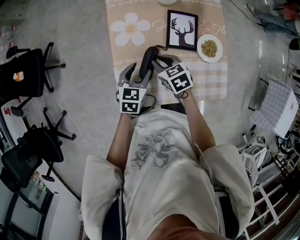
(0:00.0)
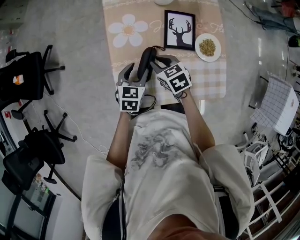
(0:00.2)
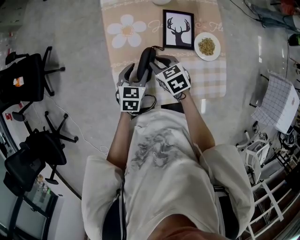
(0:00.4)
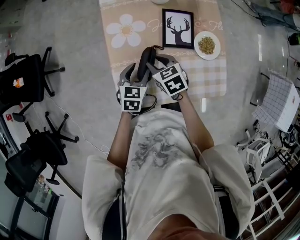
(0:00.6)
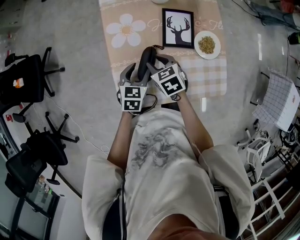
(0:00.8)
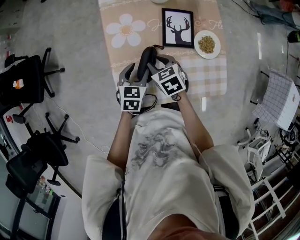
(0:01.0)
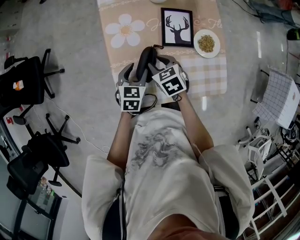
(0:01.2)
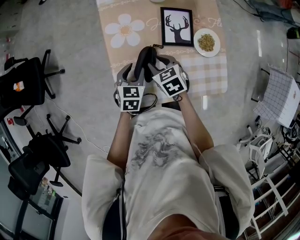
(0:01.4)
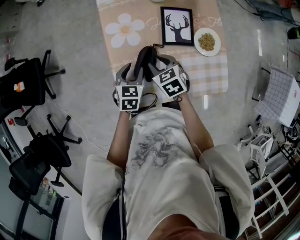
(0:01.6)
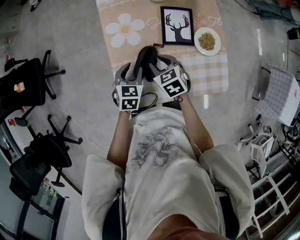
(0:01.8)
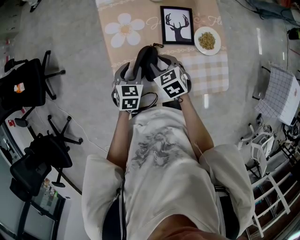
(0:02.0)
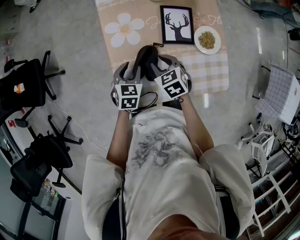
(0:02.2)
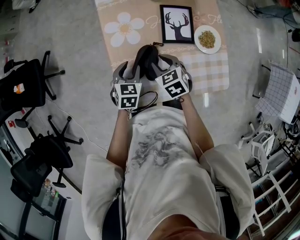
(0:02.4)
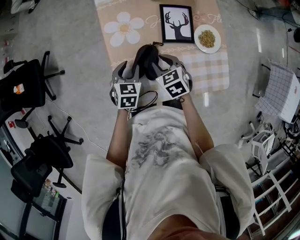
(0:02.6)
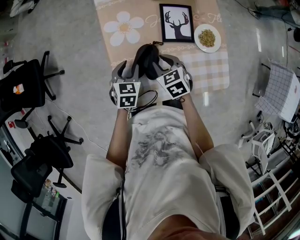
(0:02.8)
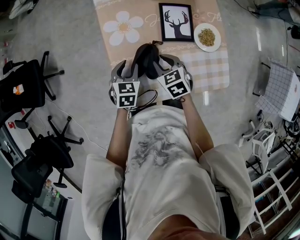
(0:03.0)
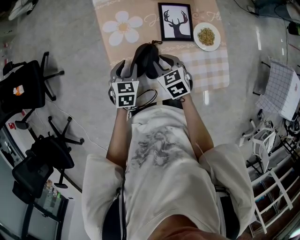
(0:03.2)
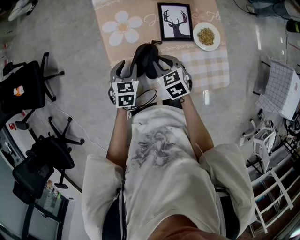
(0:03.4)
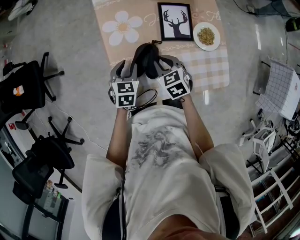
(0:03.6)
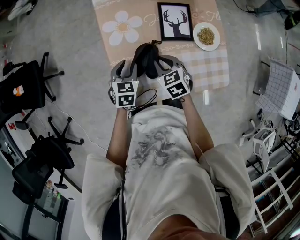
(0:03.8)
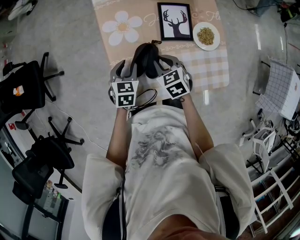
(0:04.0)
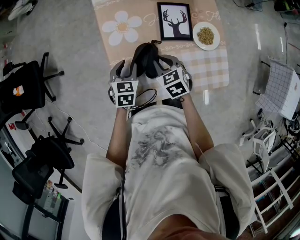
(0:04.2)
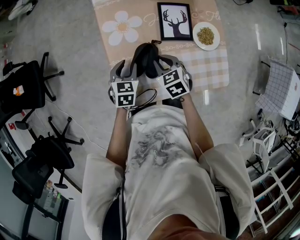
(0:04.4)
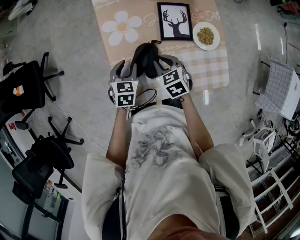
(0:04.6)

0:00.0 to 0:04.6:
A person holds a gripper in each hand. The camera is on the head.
0:00.0 to 0:03.0: The grippers make only small movements.
0:03.0 to 0:04.6: Neither gripper changes place.

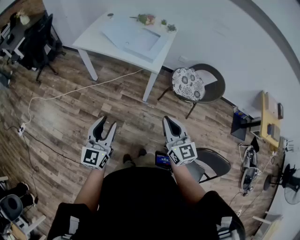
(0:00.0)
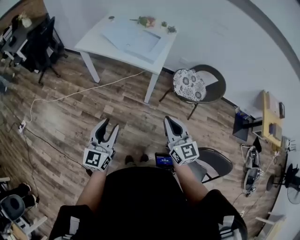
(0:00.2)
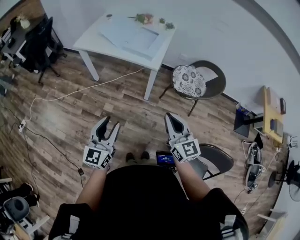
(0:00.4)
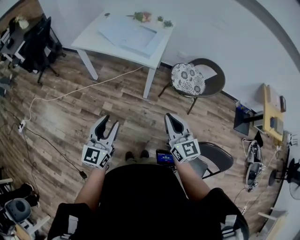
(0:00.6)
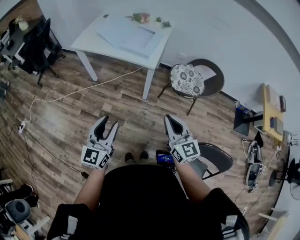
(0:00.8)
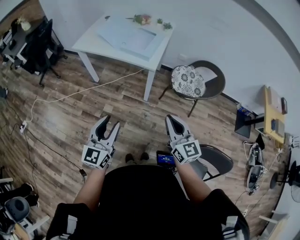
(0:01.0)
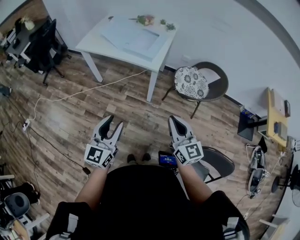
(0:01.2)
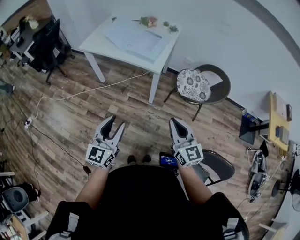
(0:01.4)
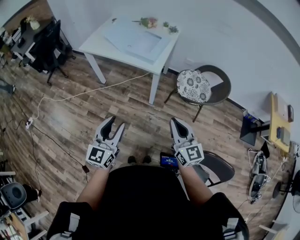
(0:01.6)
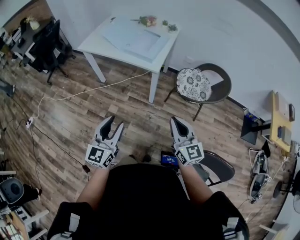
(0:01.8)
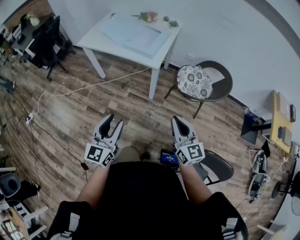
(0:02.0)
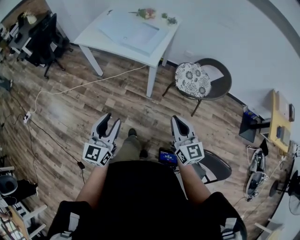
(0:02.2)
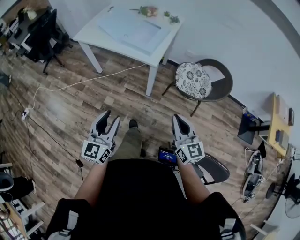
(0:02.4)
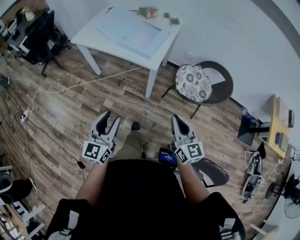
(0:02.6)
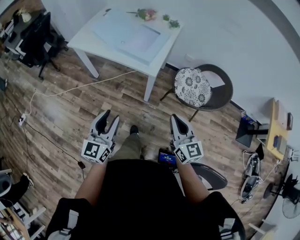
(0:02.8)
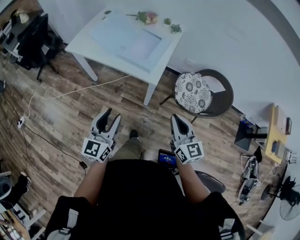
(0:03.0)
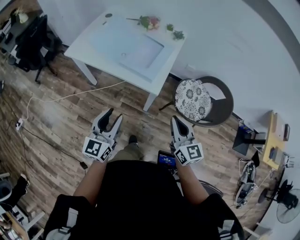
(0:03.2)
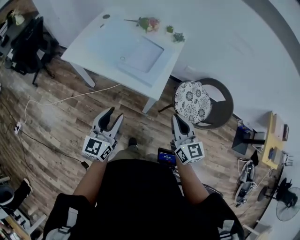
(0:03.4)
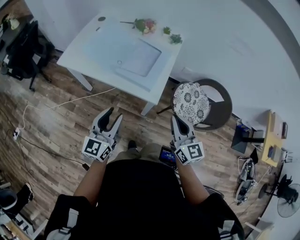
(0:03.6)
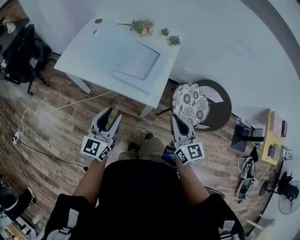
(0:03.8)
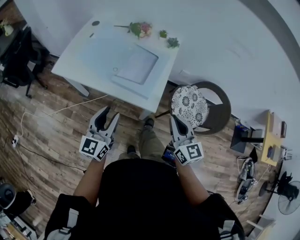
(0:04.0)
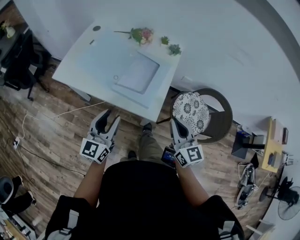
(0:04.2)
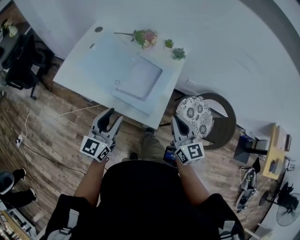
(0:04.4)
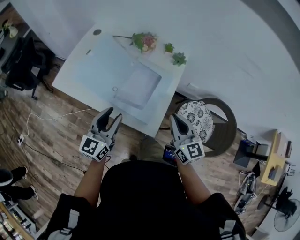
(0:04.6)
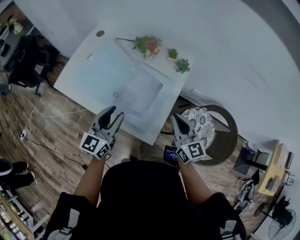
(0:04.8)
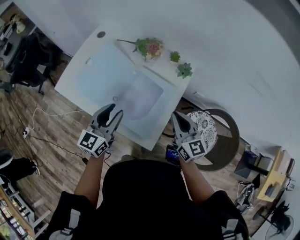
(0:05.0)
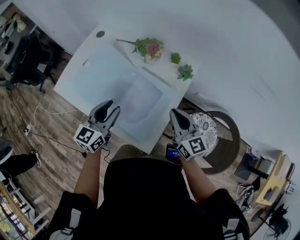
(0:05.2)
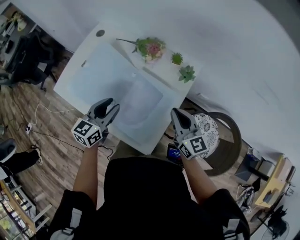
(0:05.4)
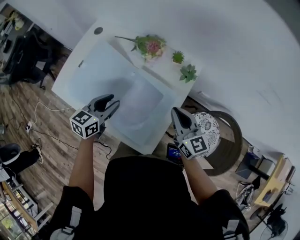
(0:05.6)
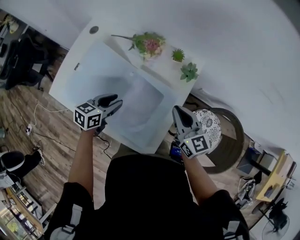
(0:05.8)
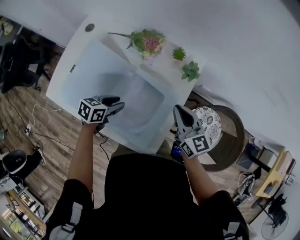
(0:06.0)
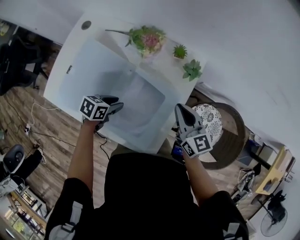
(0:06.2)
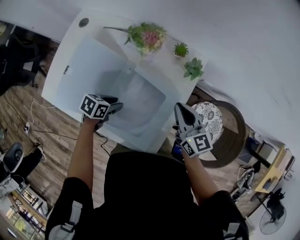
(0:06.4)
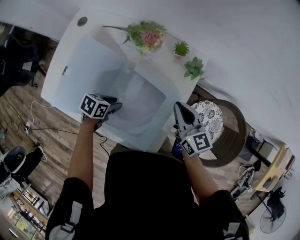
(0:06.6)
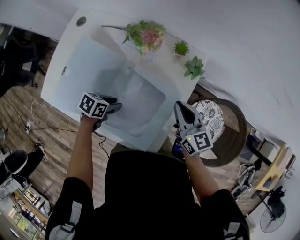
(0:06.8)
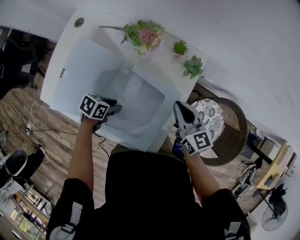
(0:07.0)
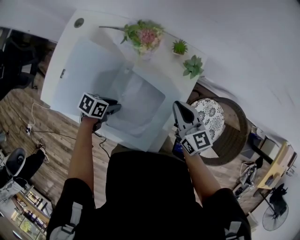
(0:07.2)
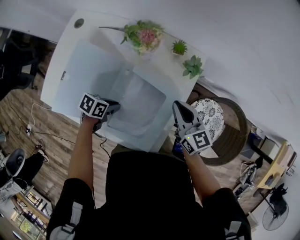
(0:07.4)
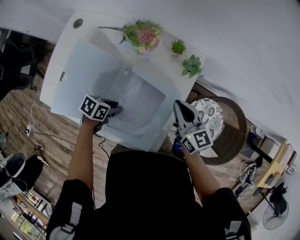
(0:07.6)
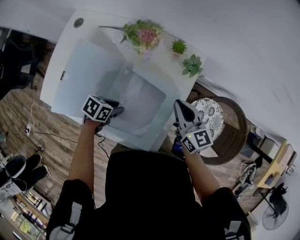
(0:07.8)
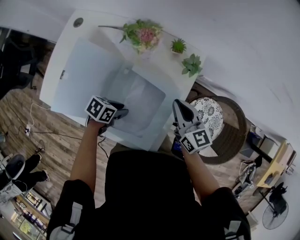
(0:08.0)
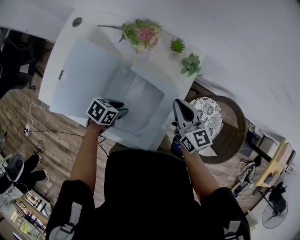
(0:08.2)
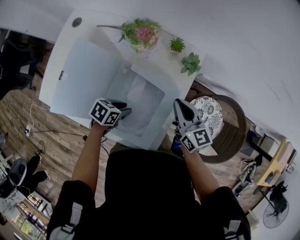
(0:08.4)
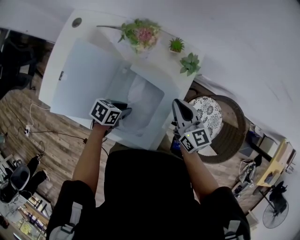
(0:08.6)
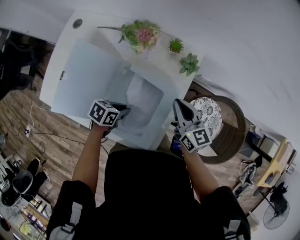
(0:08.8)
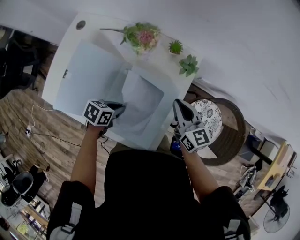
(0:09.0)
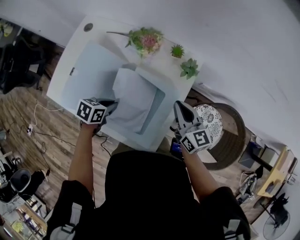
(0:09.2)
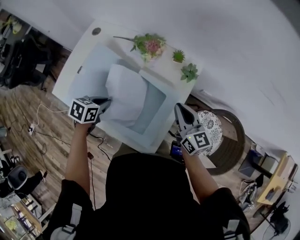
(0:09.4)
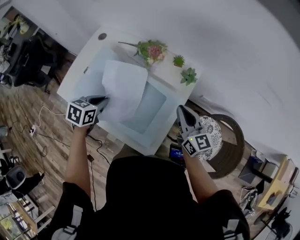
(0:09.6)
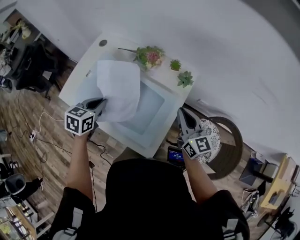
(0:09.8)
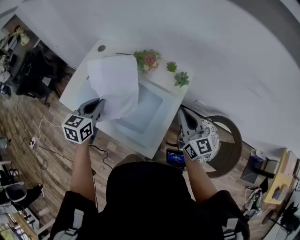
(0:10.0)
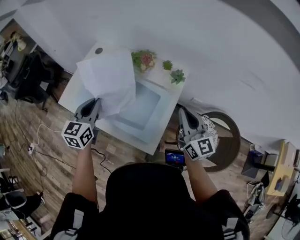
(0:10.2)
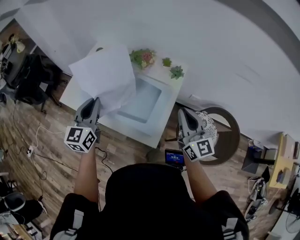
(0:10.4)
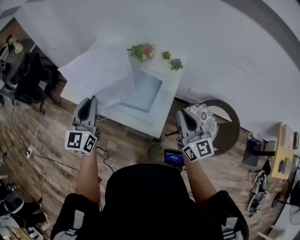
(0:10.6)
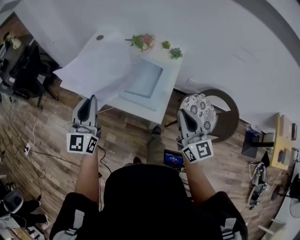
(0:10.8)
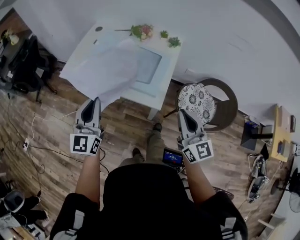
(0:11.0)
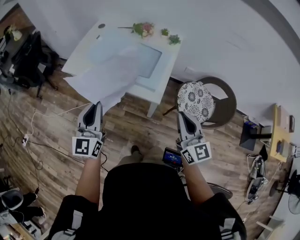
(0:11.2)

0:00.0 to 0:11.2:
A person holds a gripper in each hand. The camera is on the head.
0:00.0 to 0:01.6: Both grippers move to the right, some 10 cm.
0:01.6 to 0:03.2: Both grippers travel together forward, roughly 25 cm.
0:03.2 to 0:04.8: The grippers both shift forward by roughly 30 cm.
0:04.8 to 0:06.4: The left gripper travels downward by roughly 25 cm, and angles its fingers downward, by approximately 50 degrees. The right gripper ends up some 20 cm from where it was.
0:06.4 to 0:08.0: The left gripper shifts roughly 5 cm to the right.
0:08.0 to 0:09.6: The right gripper moves upward, roughly 5 cm, while the left gripper goes about 15 cm upward, swivels approximately 40 degrees, and closes its fingers.
0:09.6 to 0:11.2: The right gripper travels backward by roughly 40 cm; the left gripper moves backward and upward, approximately 40 cm, and angles its fingers upward, by roughly 60 degrees.

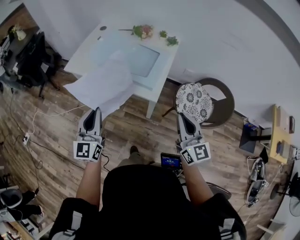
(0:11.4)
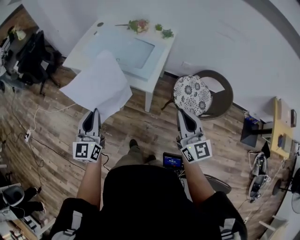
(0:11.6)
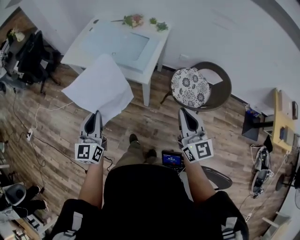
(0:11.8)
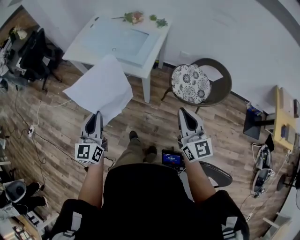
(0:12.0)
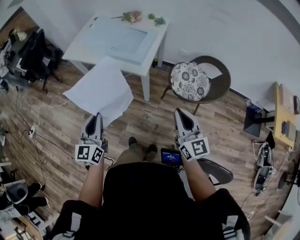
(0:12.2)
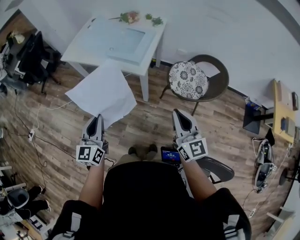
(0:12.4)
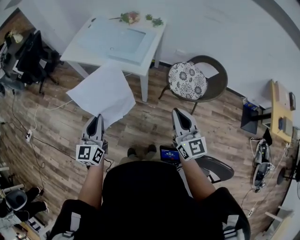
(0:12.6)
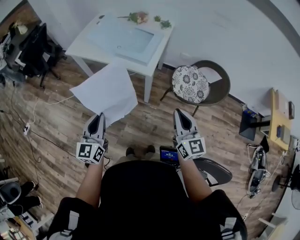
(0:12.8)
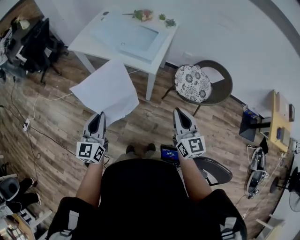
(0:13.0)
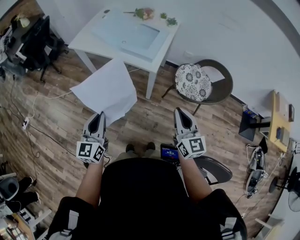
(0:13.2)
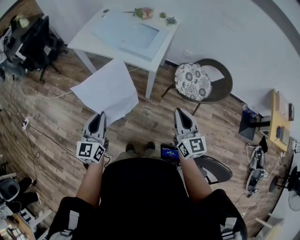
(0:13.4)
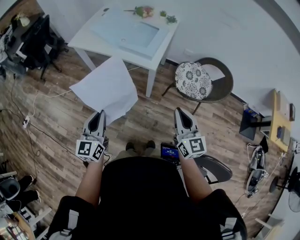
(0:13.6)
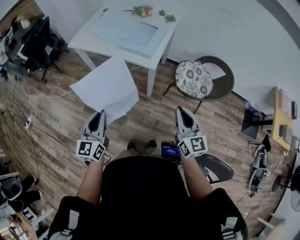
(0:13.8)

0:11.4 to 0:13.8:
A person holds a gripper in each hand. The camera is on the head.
0:11.4 to 0:12.6: Both grippers travel together backward, some 15 cm.
0:12.6 to 0:13.8: There are only small adjustments of the grippers.

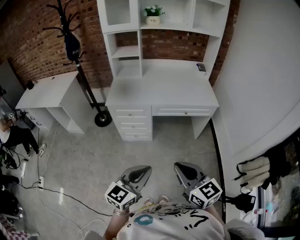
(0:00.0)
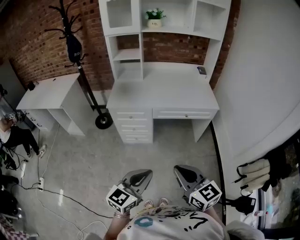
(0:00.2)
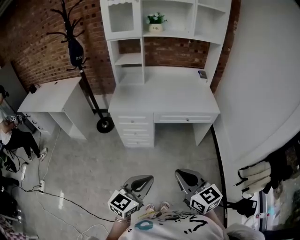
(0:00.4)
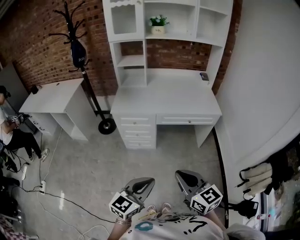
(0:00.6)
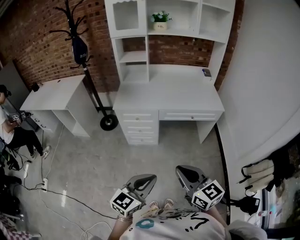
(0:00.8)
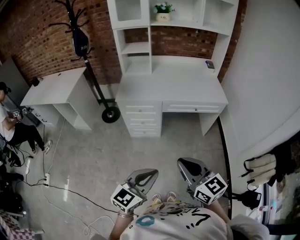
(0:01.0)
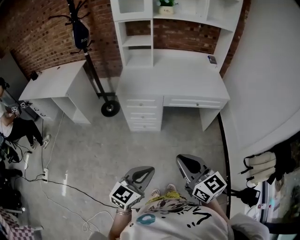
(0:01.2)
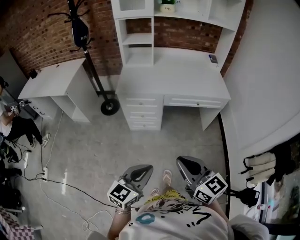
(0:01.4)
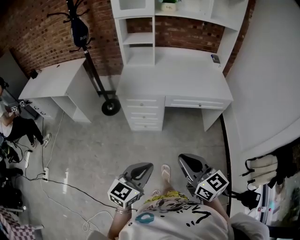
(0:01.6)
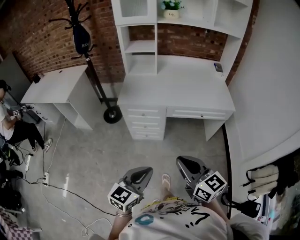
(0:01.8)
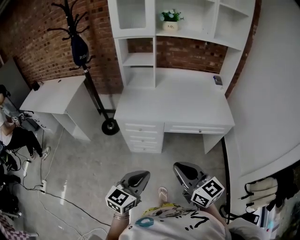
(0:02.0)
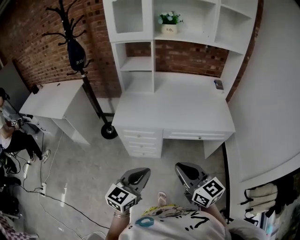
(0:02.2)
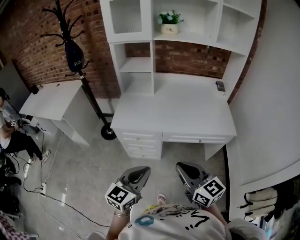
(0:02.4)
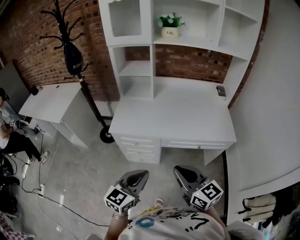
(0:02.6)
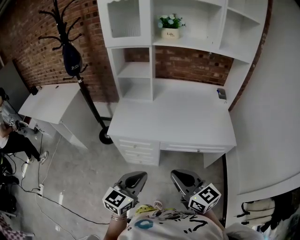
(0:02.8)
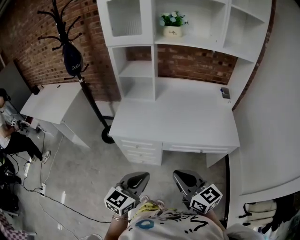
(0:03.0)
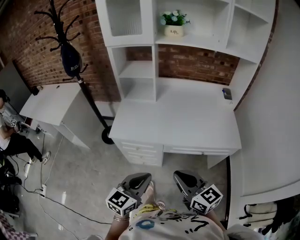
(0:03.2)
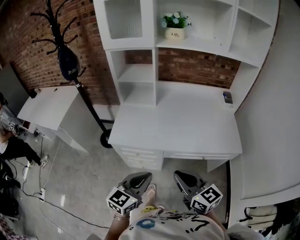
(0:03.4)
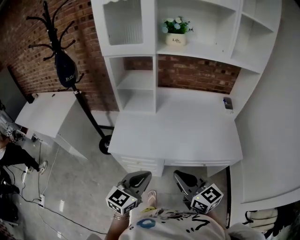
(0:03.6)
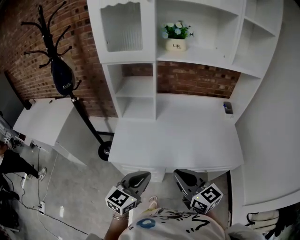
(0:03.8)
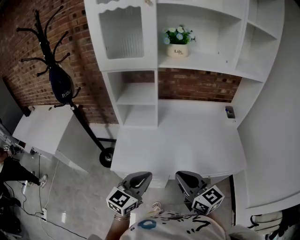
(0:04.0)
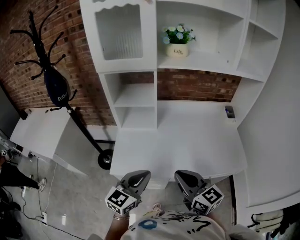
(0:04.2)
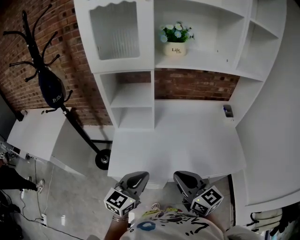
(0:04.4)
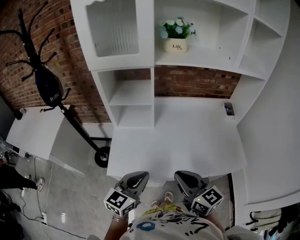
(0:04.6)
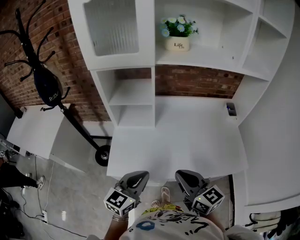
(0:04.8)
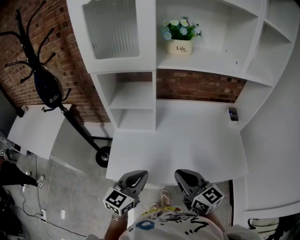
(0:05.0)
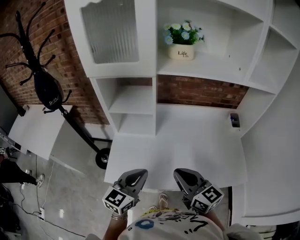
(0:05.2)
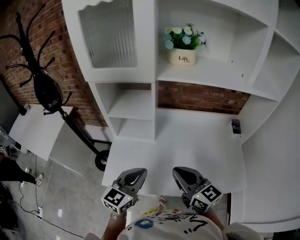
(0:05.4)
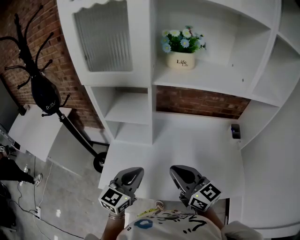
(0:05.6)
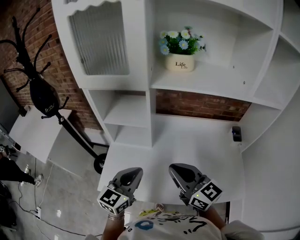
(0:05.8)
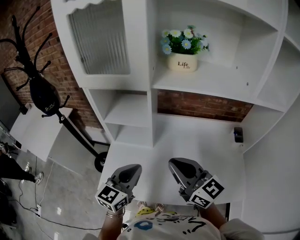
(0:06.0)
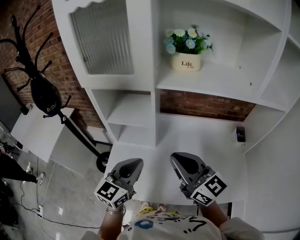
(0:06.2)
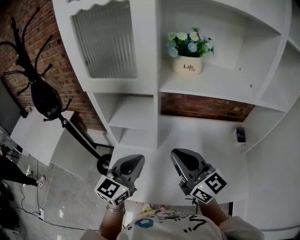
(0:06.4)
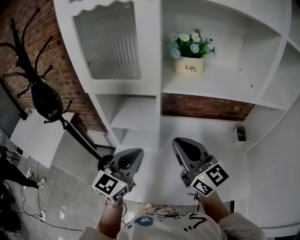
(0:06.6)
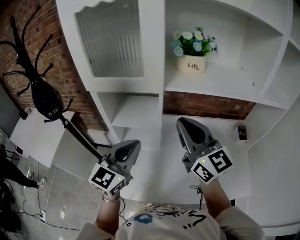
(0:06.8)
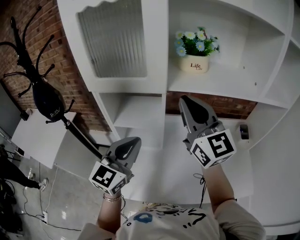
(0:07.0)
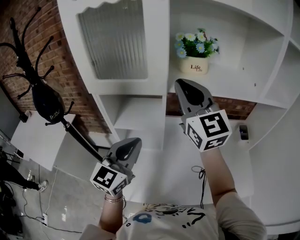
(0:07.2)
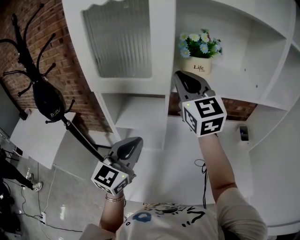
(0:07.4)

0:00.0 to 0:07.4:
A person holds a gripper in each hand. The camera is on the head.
0:00.0 to 0:01.4: Both grippers travel together to the left, some 10 cm.
0:01.4 to 0:03.0: The two grippers go approximately 30 cm forward.
0:03.0 to 0:04.4: The two grippers go about 25 cm forward.
0:04.4 to 0:06.0: Both grippers move forward, approximately 20 cm.
0:06.0 to 0:07.4: The left gripper shifts approximately 15 cm upward, forward and to the left; the right gripper heads forward and upward, covering approximately 30 cm, and rotates about 40 degrees.
